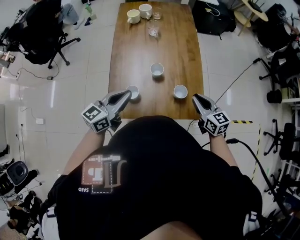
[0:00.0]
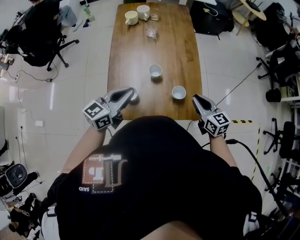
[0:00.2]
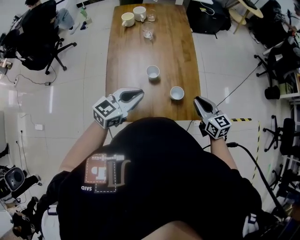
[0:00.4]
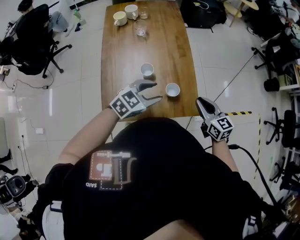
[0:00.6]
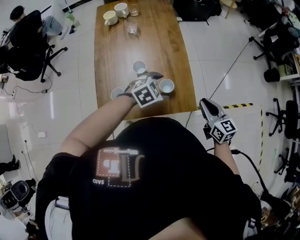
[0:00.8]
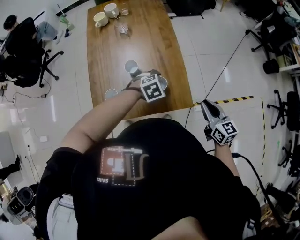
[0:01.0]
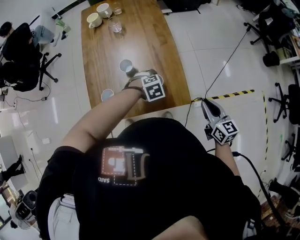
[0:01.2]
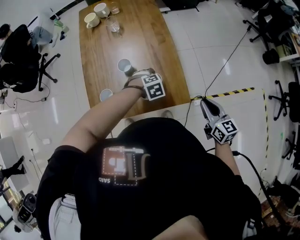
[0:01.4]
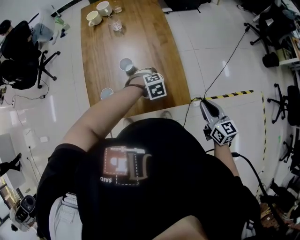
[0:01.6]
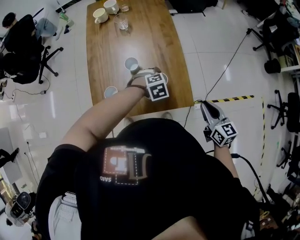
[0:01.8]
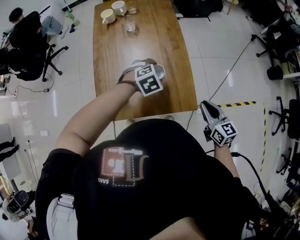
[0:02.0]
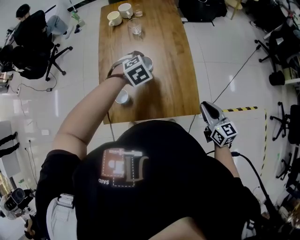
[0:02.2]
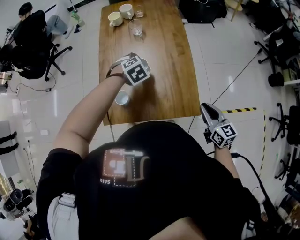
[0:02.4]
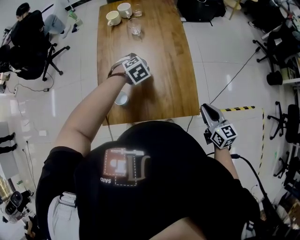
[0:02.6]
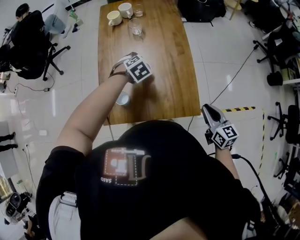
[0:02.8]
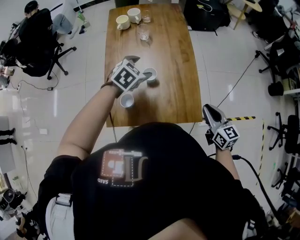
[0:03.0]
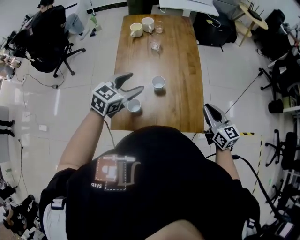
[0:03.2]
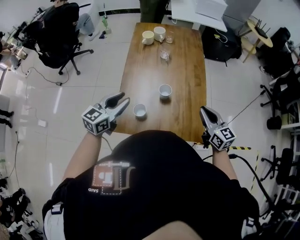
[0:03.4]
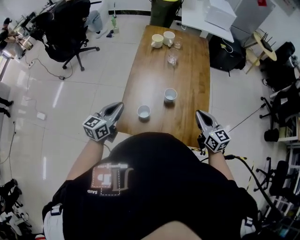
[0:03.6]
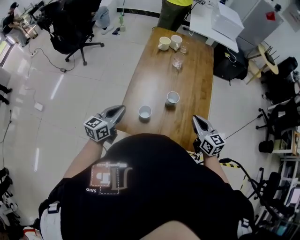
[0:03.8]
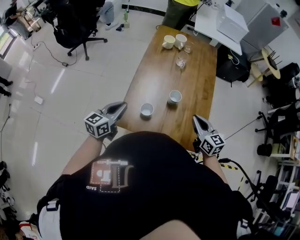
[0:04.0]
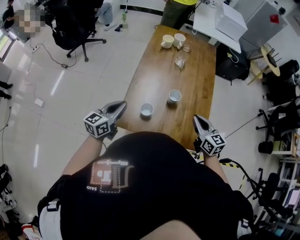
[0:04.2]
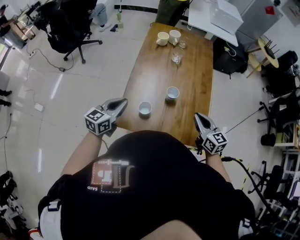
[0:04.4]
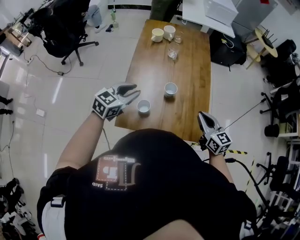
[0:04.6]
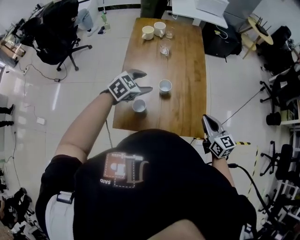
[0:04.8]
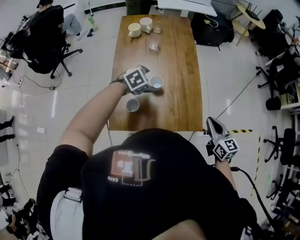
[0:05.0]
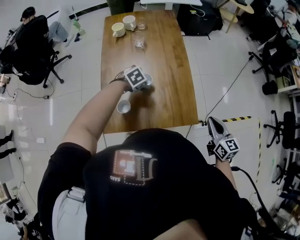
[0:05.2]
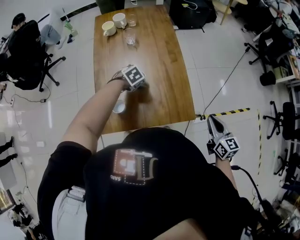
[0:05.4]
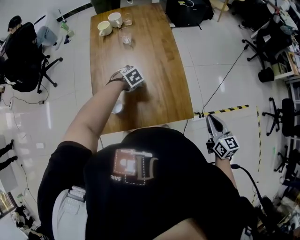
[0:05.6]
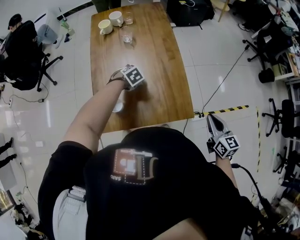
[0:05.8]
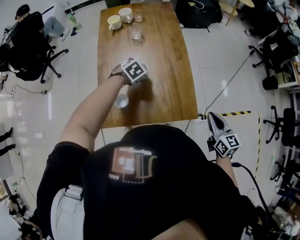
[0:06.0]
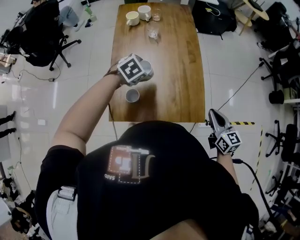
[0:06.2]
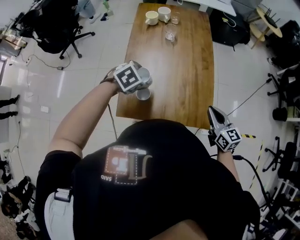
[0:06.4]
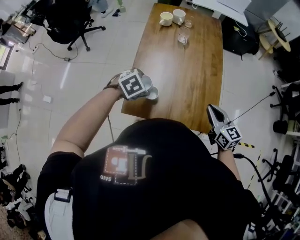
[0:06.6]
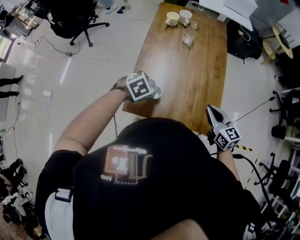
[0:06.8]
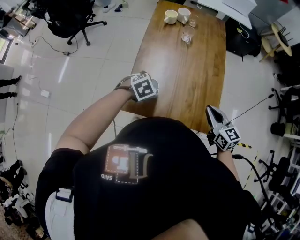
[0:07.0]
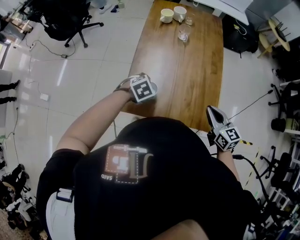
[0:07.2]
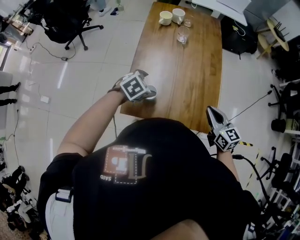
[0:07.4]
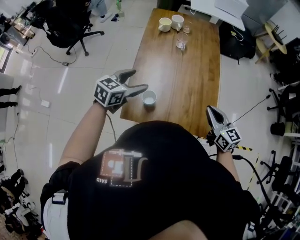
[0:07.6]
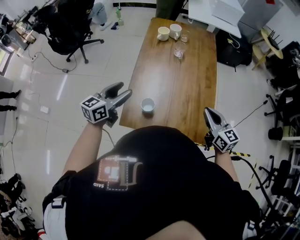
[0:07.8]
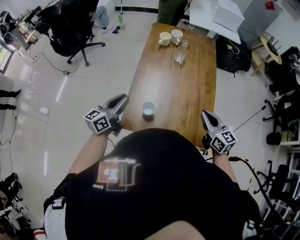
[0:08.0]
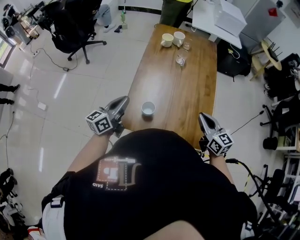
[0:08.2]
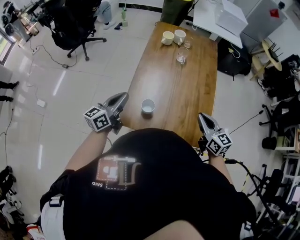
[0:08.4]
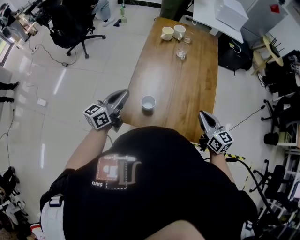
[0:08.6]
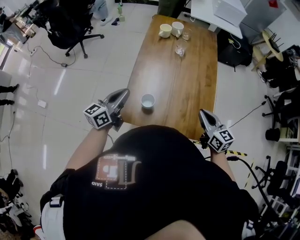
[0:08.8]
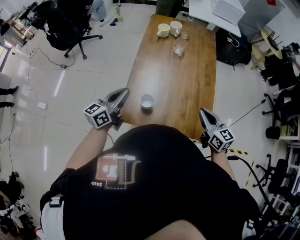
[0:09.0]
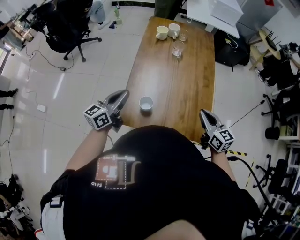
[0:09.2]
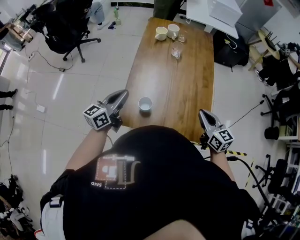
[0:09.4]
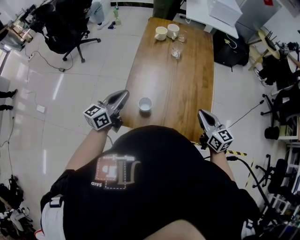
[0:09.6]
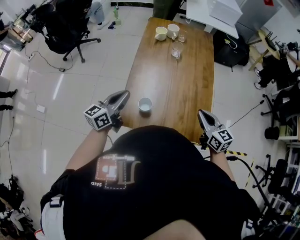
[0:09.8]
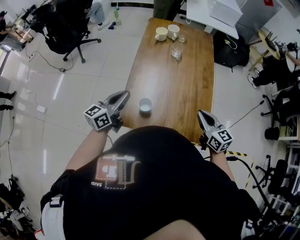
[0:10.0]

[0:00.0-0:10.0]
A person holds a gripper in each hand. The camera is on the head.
0:00.0 to 0:01.4: The right gripper changes place by approximately 20 cm. The left gripper shifts by about 35 cm, tips its fingers downward by roughly 70 degrees, and opens.
0:01.4 to 0:02.8: The right gripper changes place by roughly 10 cm. Meanwhile the left gripper ends up roughly 20 cm from where it was, and turns by some 20 degrees.
0:02.8 to 0:04.2: The left gripper moves to the left, backward and upward, approximately 35 cm, tilts its fingers about 60 degrees upward, and closes; the right gripper goes some 20 cm to the left and forward, and swivels some 20 degrees.
0:04.2 to 0:05.8: The right gripper shifts by some 25 cm, and rotates approximately 30 degrees. The left gripper shifts by roughly 35 cm, points its fingers roughly 60 degrees further downward, and opens.
0:05.8 to 0:07.2: The right gripper heads to the left, covering about 20 cm, and swivels about 30 degrees. The left gripper travels backward, to the left and upward by roughly 20 cm.
0:07.2 to 0:08.6: The left gripper heads upward and to the left, covering approximately 20 cm, points its fingers about 60 degrees further upward, and closes its fingers.
0:08.6 to 0:10.0: The grippers make only small movements.

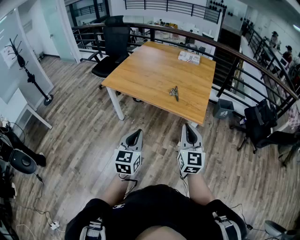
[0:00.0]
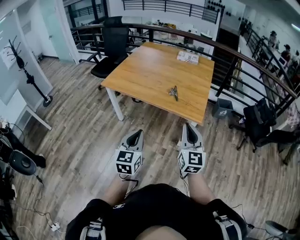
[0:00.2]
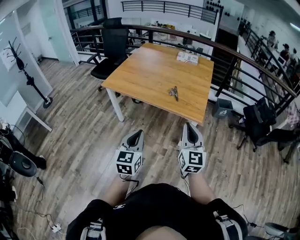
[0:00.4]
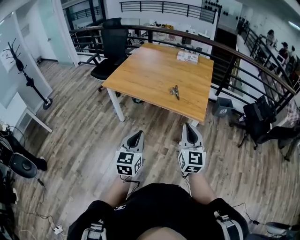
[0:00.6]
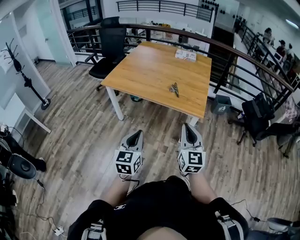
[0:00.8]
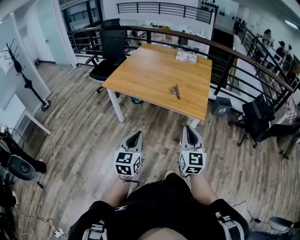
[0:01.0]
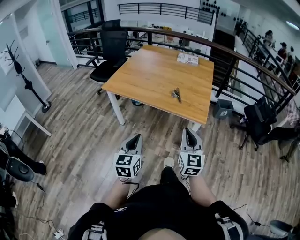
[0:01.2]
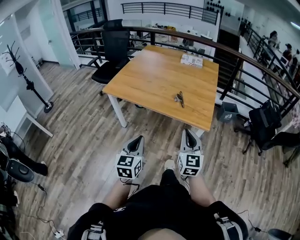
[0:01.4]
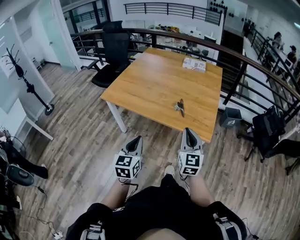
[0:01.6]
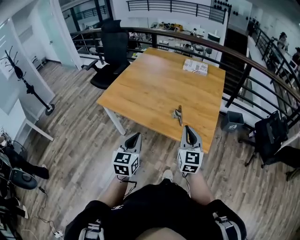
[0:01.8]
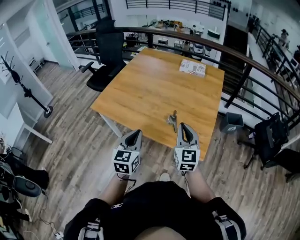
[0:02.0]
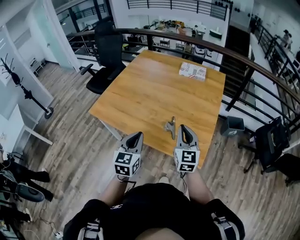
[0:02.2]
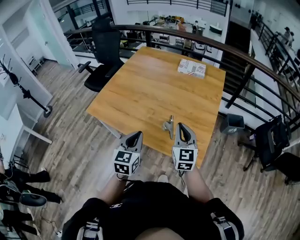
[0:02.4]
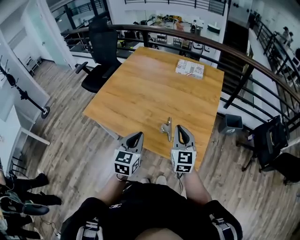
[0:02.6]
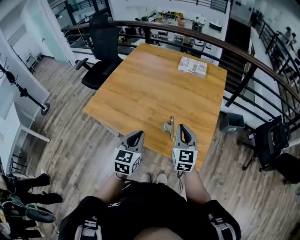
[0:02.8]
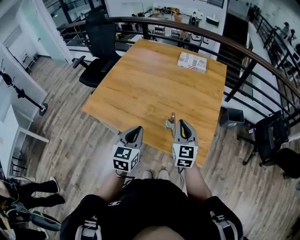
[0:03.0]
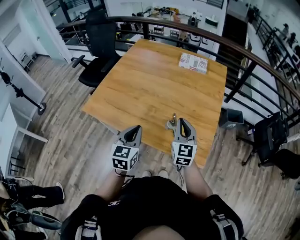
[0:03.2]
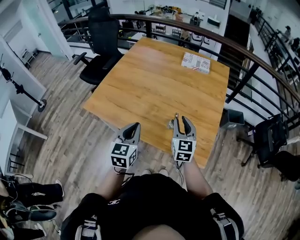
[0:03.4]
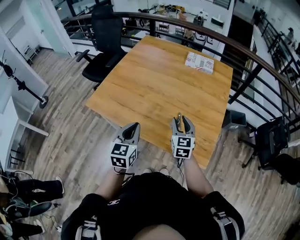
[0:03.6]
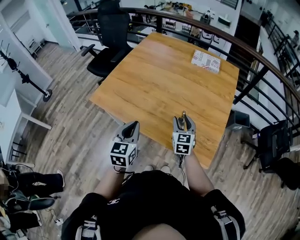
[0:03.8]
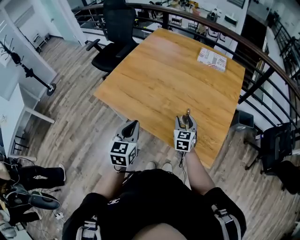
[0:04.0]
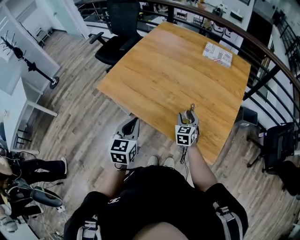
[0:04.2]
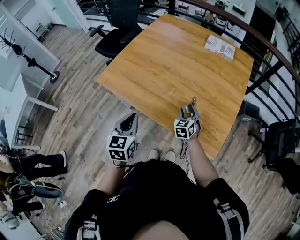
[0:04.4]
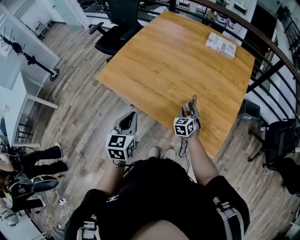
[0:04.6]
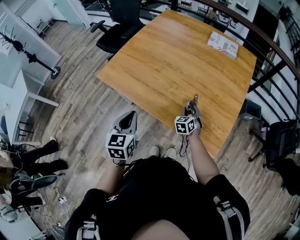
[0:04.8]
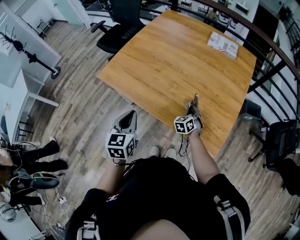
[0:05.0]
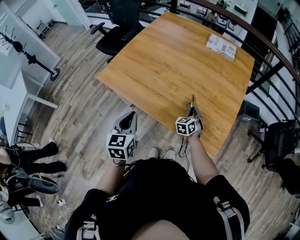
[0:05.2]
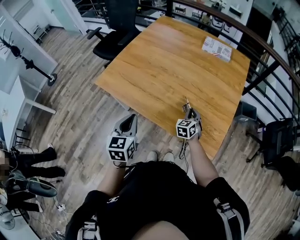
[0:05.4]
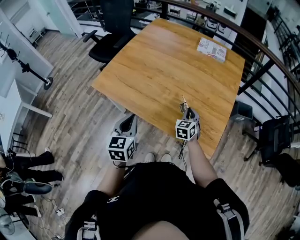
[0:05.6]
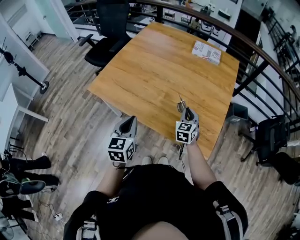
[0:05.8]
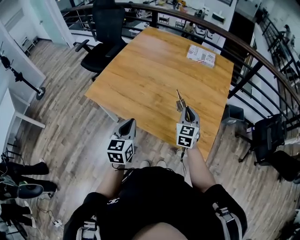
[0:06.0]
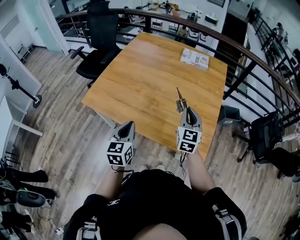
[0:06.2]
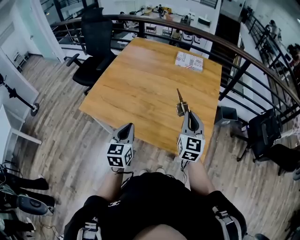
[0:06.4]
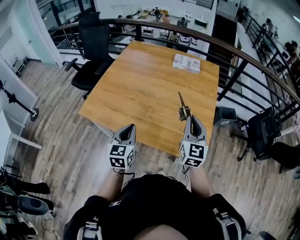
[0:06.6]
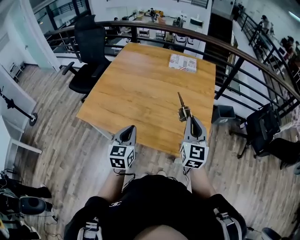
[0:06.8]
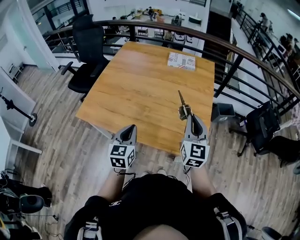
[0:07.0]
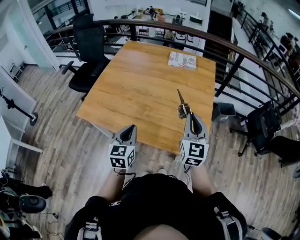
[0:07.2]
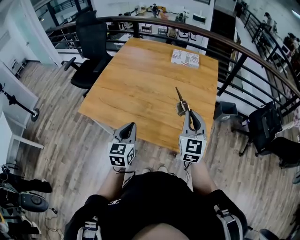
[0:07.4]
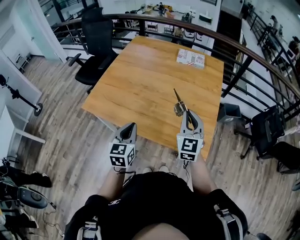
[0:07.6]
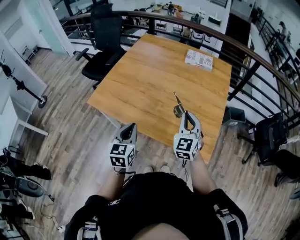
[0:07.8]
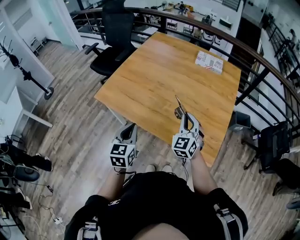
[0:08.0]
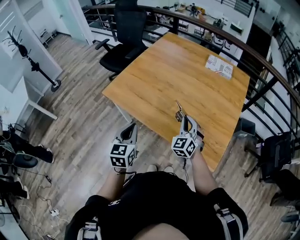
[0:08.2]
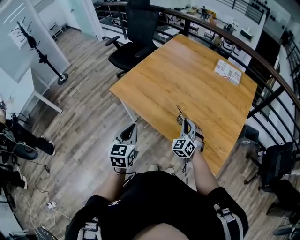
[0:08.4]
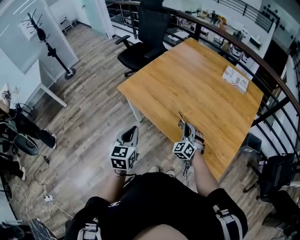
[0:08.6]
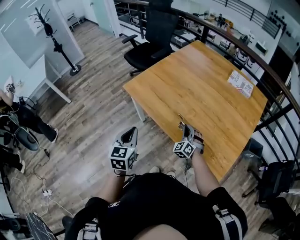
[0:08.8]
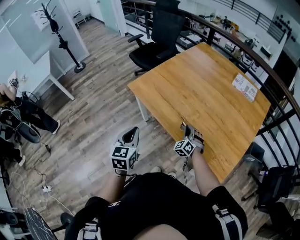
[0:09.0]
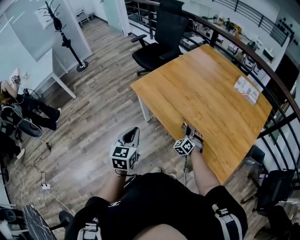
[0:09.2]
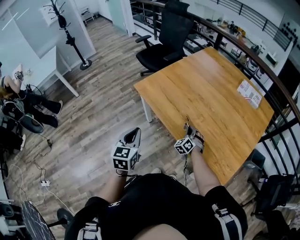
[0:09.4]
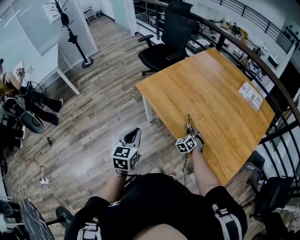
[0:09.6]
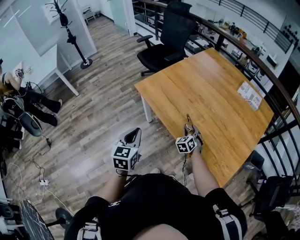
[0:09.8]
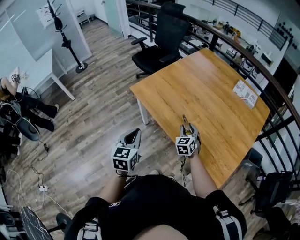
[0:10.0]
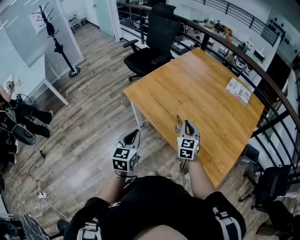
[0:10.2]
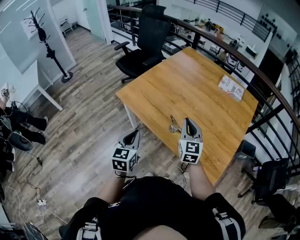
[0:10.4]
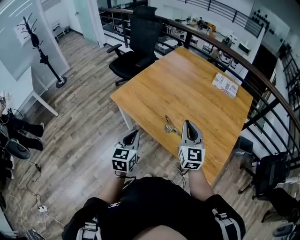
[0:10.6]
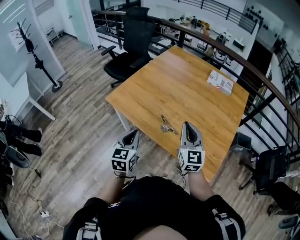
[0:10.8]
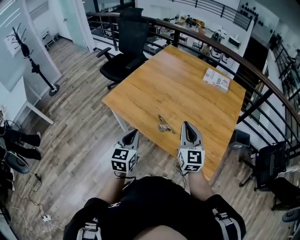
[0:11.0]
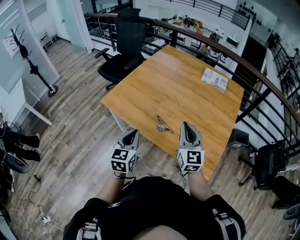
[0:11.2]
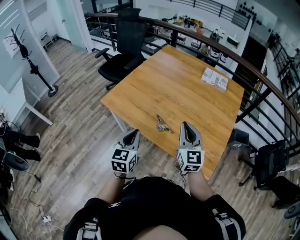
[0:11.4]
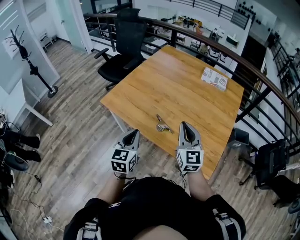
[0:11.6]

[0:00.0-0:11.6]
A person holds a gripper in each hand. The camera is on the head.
0:00.0 to 0:01.4: The right gripper is displaced forward and downward by approximately 10 cm. Meanwhile the left gripper travels forward by about 5 cm.
0:01.4 to 0:02.8: The two grippers travel together, forward, about 50 cm.
0:02.8 to 0:04.4: The right gripper travels downward, to the left and forward by about 25 cm, changes its angle by approximately 30 degrees, and opens its fingers. The left gripper goes about 15 cm to the left.
0:04.4 to 0:05.8: The right gripper heads upward, covering roughly 10 cm, and closes up.
0:05.8 to 0:07.2: The left gripper moves to the right, approximately 5 cm, while the right gripper is displaced upward and backward by roughly 20 cm, and turns by some 20 degrees.
0:07.2 to 0:08.8: The right gripper heads downward, covering some 25 cm, and rotates around the line of its fingers by roughly 50 degrees, counterclockwise from behind; the left gripper shifts by some 20 cm, and changes its angle by about 30 degrees.
0:08.8 to 0:10.2: The right gripper heads upward, covering approximately 10 cm, swivels approximately 40 degrees, and opens, then closes again.
0:10.2 to 0:11.6: The left gripper travels to the right by approximately 10 cm. The right gripper goes some 15 cm upward, to the right and backward.

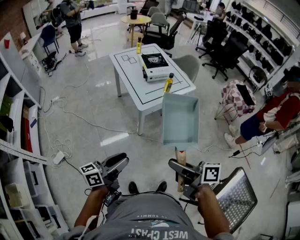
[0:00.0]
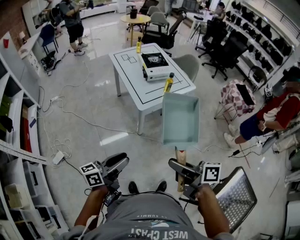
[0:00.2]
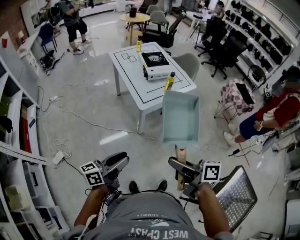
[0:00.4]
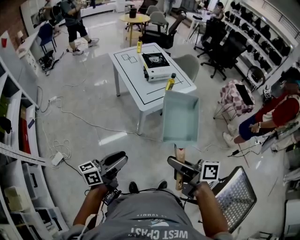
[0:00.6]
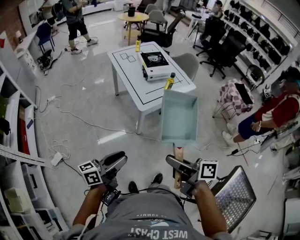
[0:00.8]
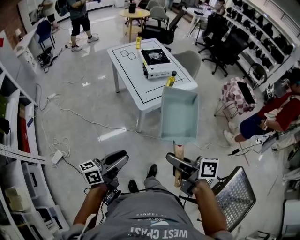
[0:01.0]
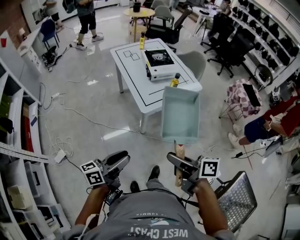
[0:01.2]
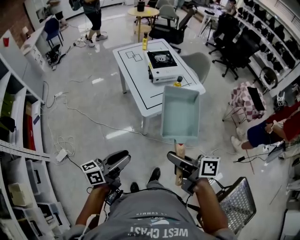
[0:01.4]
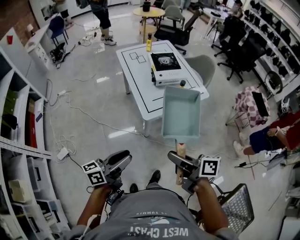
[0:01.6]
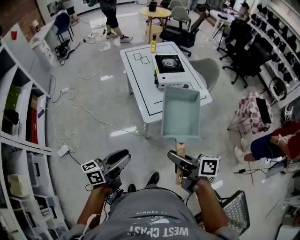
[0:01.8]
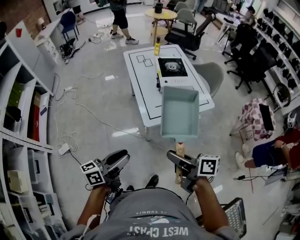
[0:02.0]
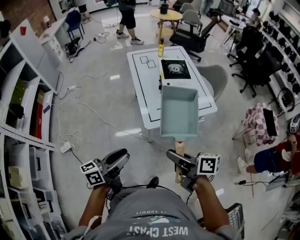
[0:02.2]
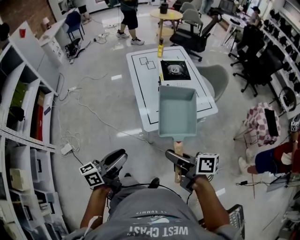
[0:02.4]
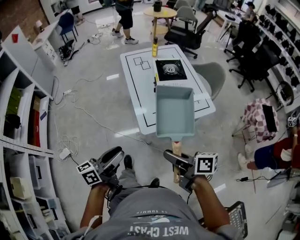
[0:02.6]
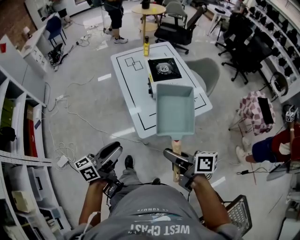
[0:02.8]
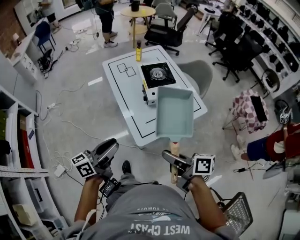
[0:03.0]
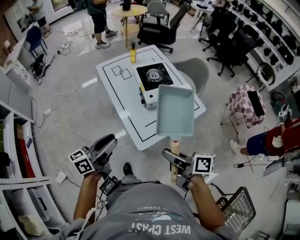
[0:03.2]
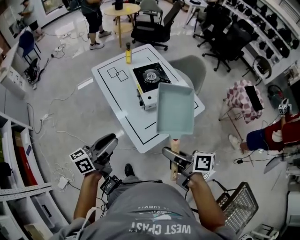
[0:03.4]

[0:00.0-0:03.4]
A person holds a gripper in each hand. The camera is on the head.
0:00.0 to 0:01.6: The grippers both shift forward by some 15 cm.
0:01.6 to 0:03.4: Both grippers move forward, roughly 30 cm.
